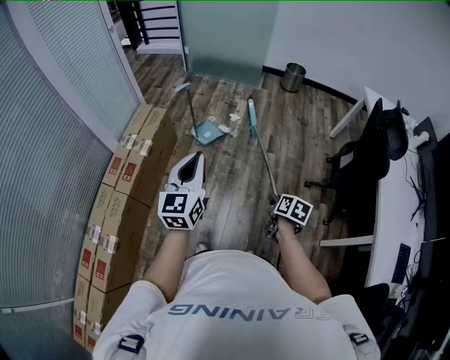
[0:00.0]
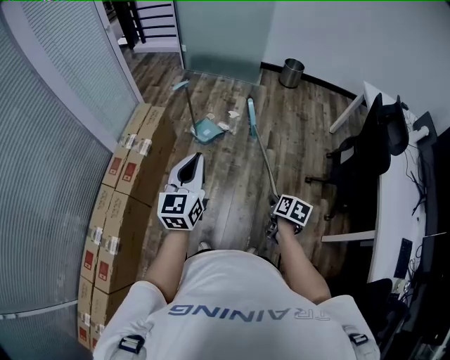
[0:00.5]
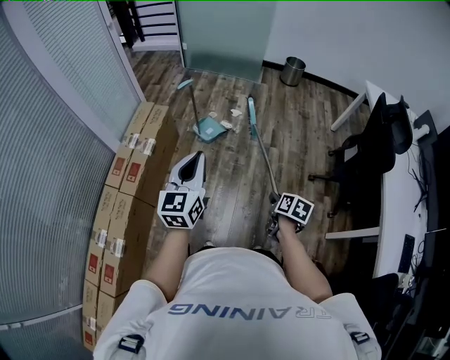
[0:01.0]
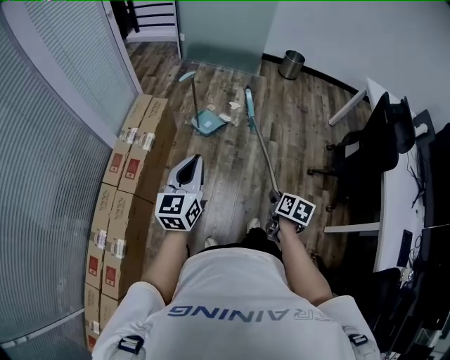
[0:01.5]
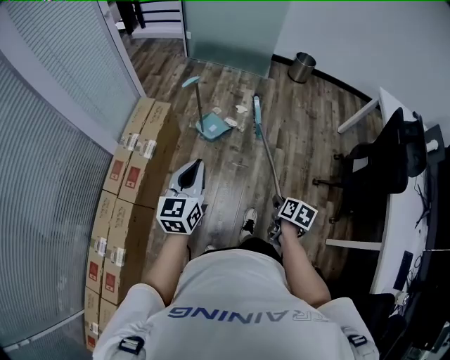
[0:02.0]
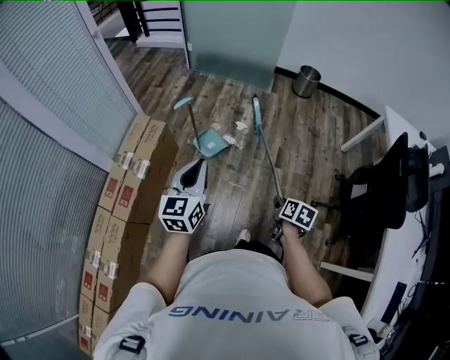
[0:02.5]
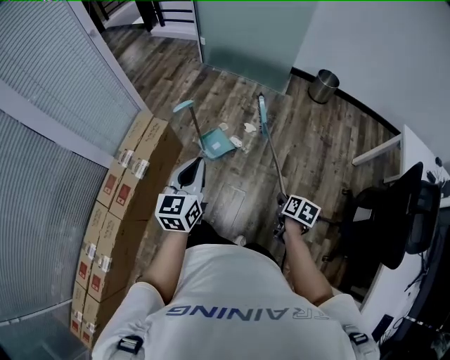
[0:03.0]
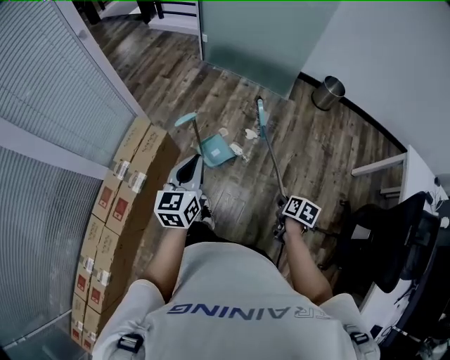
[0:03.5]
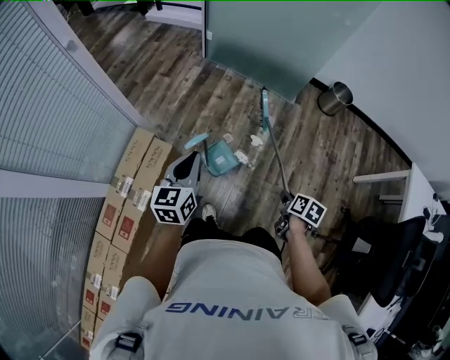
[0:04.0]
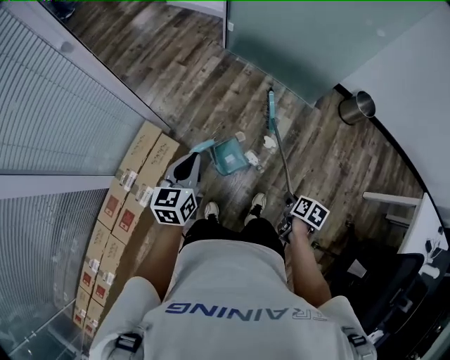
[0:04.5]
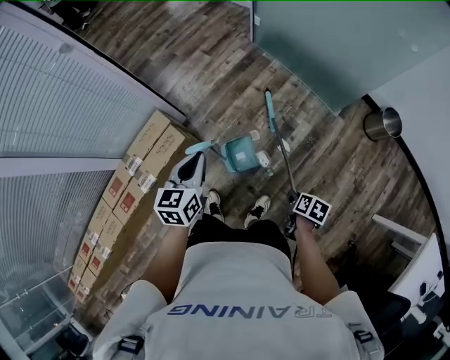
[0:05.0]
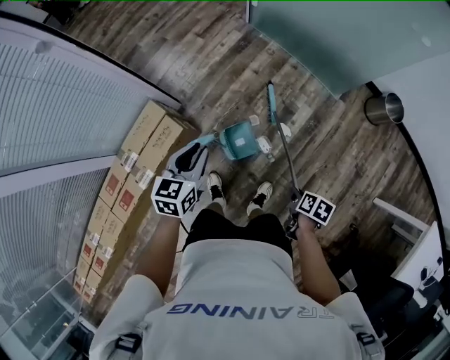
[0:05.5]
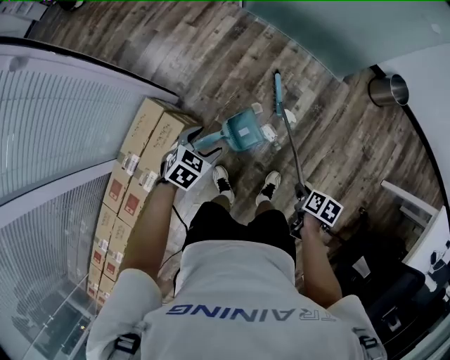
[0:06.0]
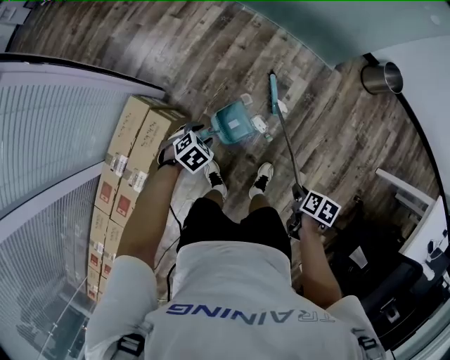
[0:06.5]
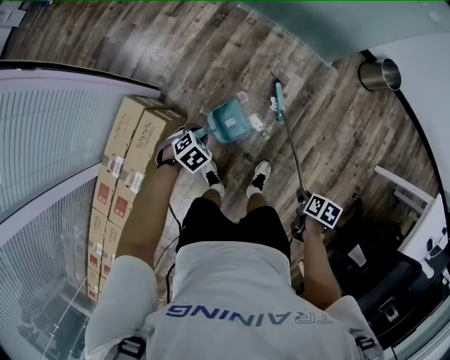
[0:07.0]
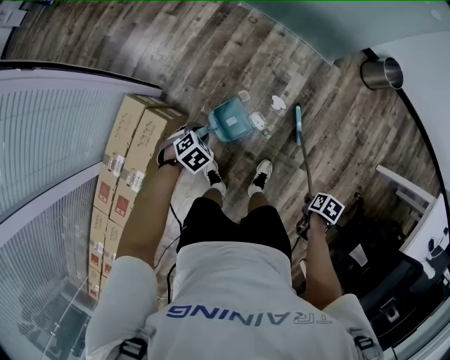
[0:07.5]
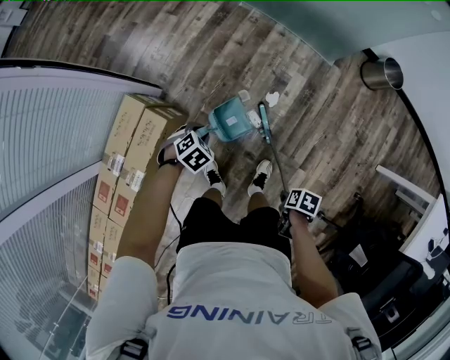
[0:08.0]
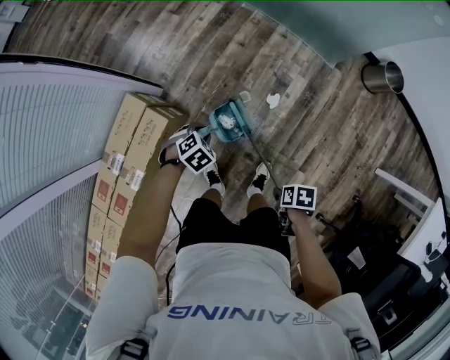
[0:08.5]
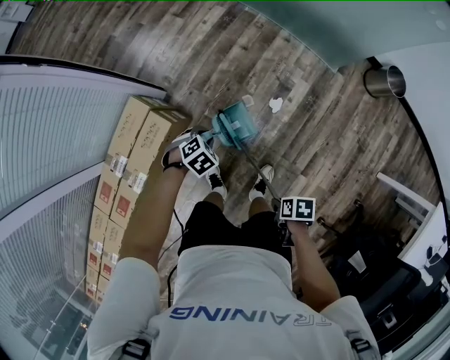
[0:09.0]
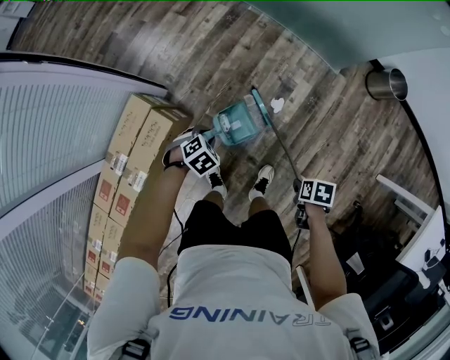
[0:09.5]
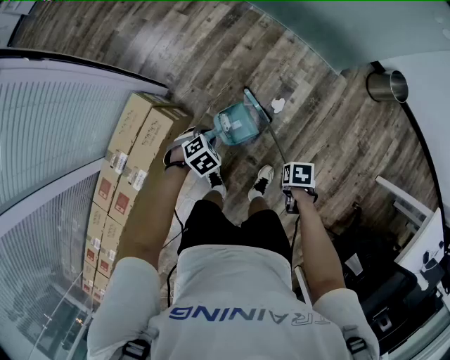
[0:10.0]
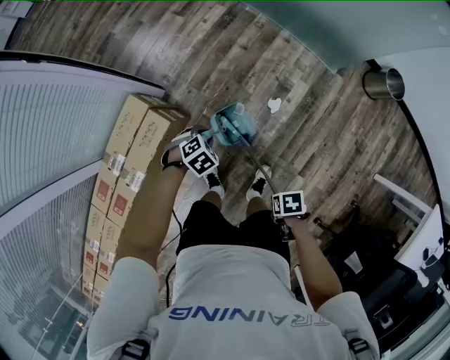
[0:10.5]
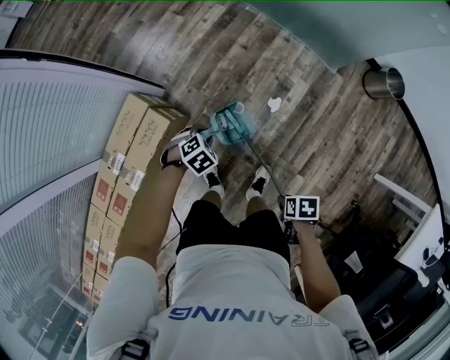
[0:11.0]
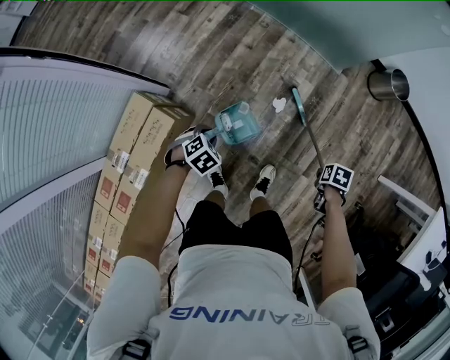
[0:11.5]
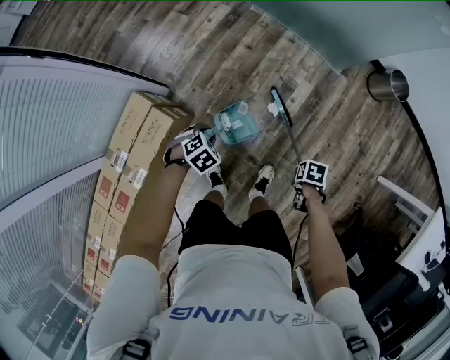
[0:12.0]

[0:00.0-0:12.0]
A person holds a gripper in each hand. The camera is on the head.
0:00.0 to 0:02.0: The left gripper ends up about 15 cm from where it was.
0:02.0 to 0:04.0: The left gripper changes place by about 50 cm.
0:04.0 to 0:06.0: The left gripper moves downward, some 20 cm, tilts its fingers some 40 degrees downward, and opens its fingers.
0:06.0 to 0:08.0: The left gripper moves downward, approximately 10 cm, rotates approximately 20 degrees, and closes its fingers.

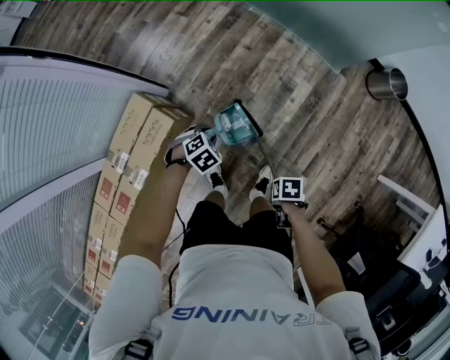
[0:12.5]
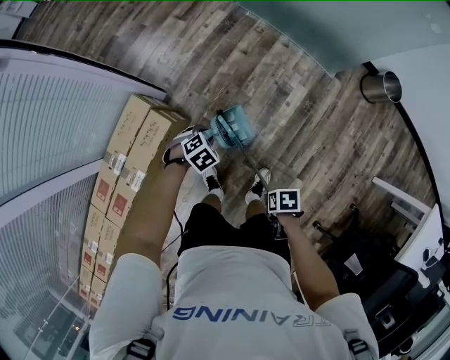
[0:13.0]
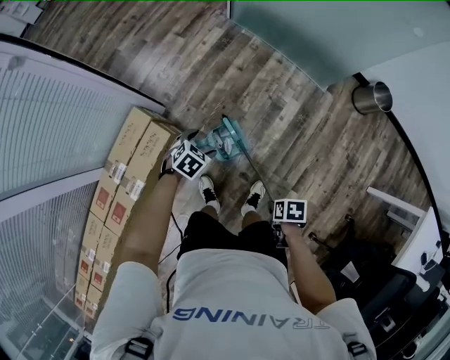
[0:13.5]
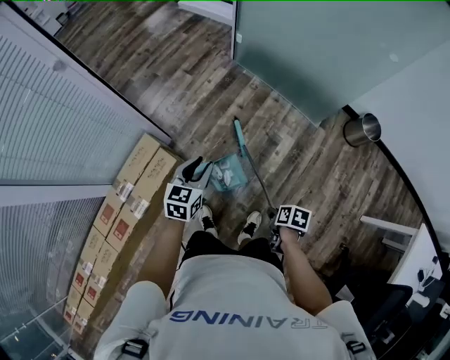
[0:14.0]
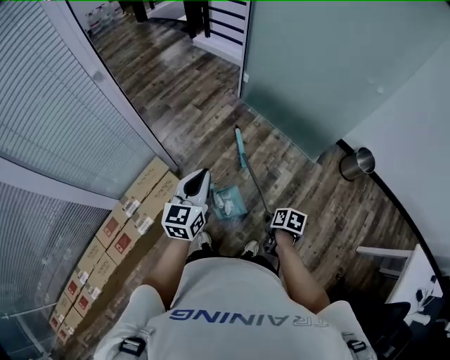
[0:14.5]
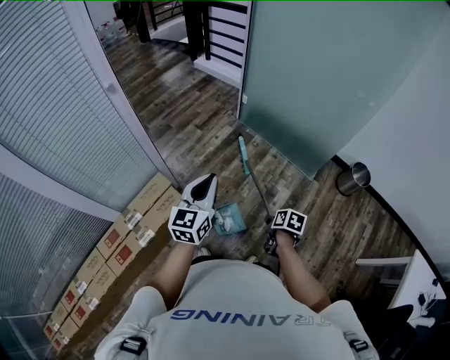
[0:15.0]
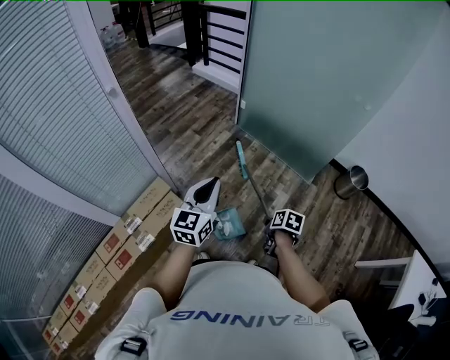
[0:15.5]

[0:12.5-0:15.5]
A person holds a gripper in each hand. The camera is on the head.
0:12.5 to 0:14.0: The left gripper shifts roughly 25 cm upward, points its fingers roughly 40 degrees further upward, and opens and closes again.
0:14.0 to 0:15.5: The left gripper heads upward, covering approximately 20 cm, turns by about 20 degrees, and closes its fingers.

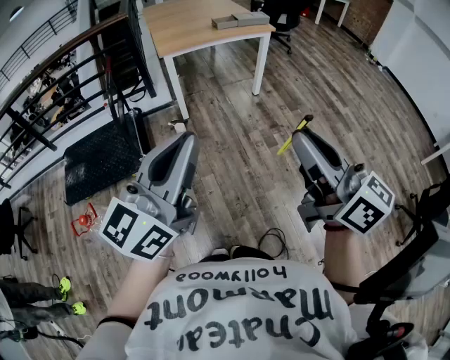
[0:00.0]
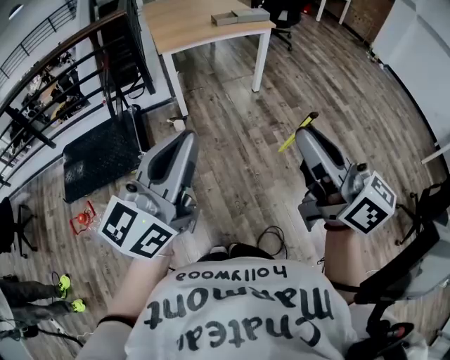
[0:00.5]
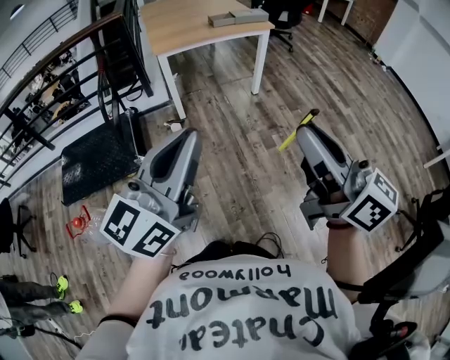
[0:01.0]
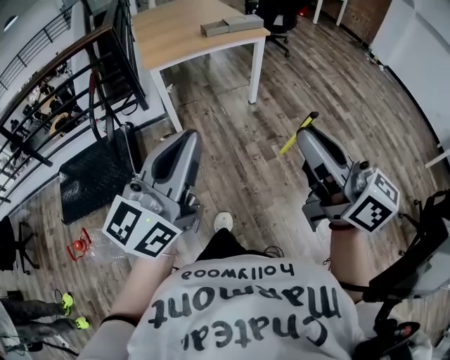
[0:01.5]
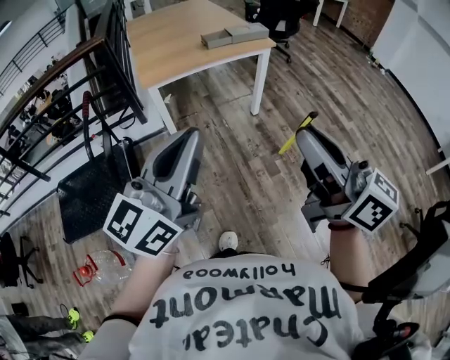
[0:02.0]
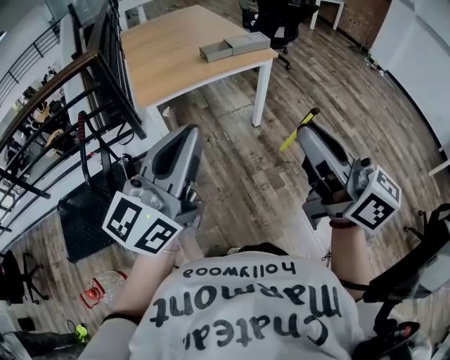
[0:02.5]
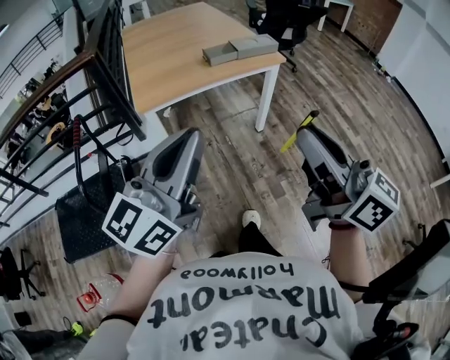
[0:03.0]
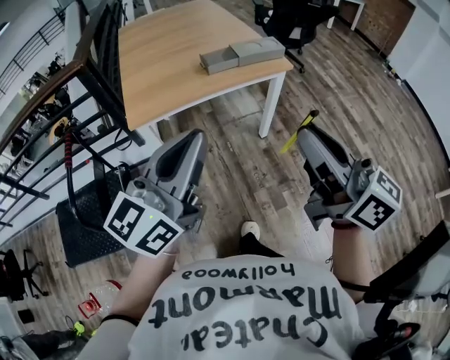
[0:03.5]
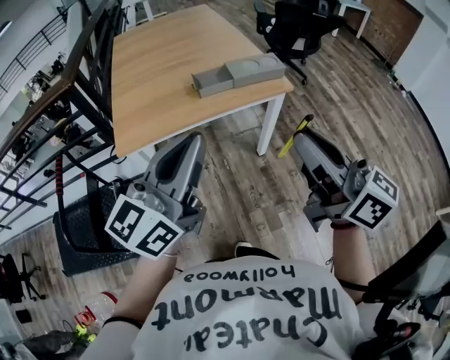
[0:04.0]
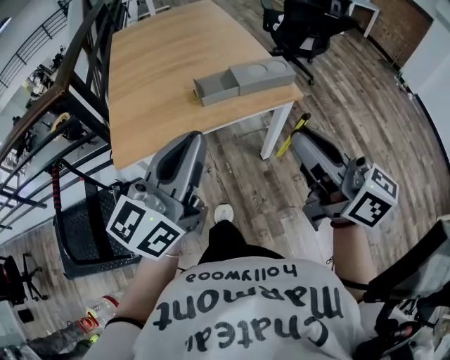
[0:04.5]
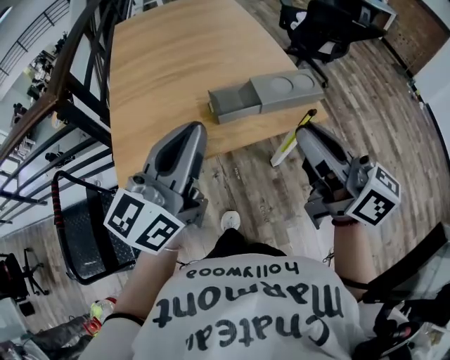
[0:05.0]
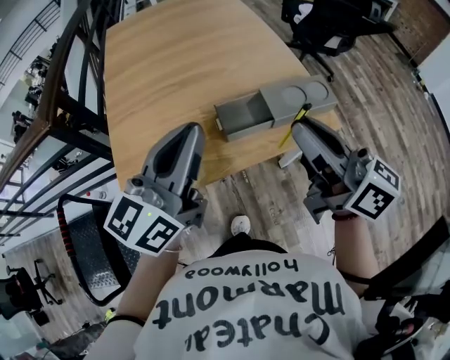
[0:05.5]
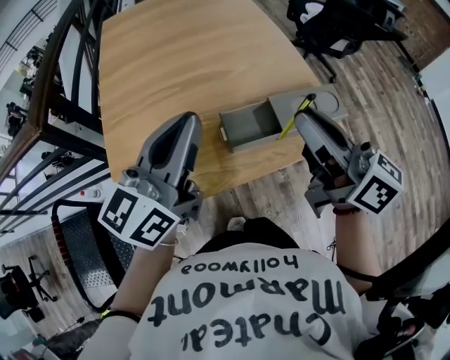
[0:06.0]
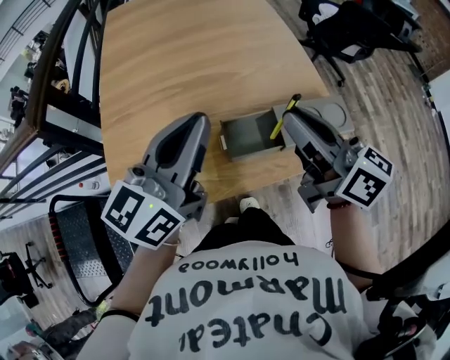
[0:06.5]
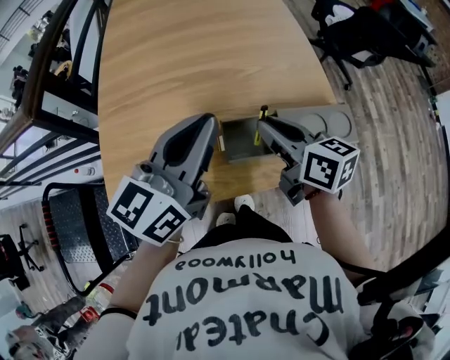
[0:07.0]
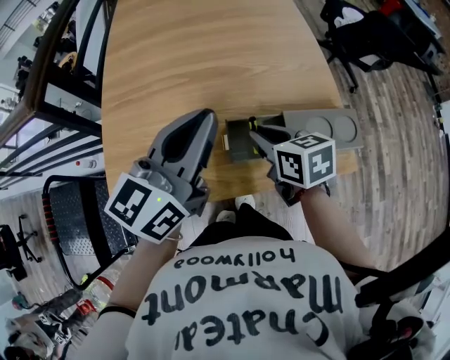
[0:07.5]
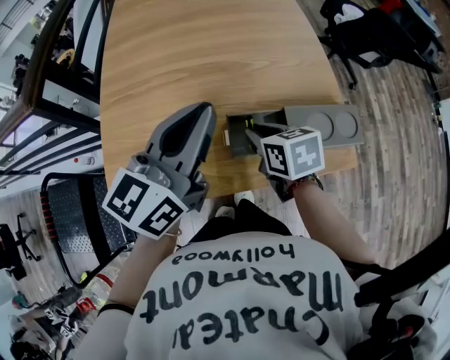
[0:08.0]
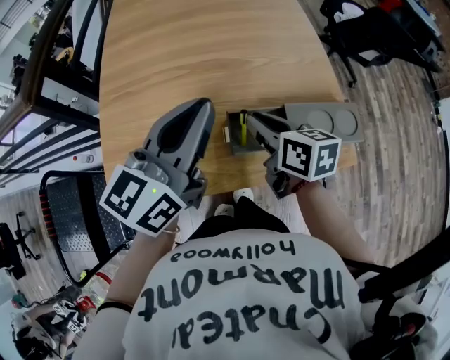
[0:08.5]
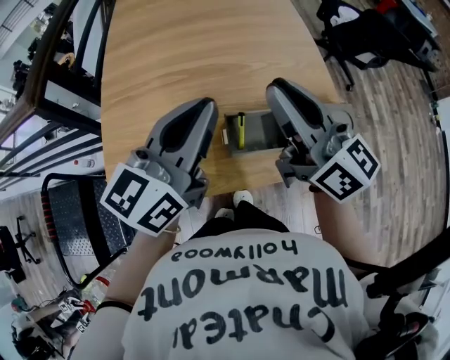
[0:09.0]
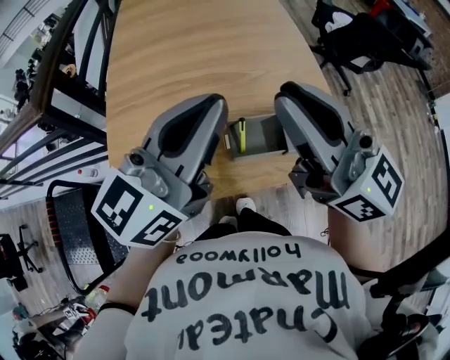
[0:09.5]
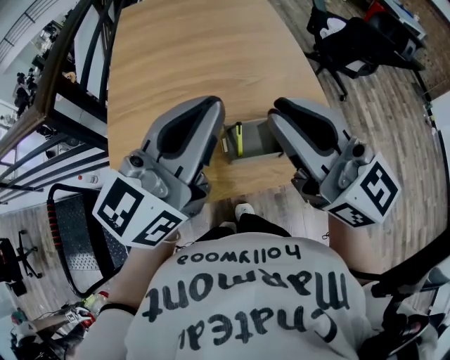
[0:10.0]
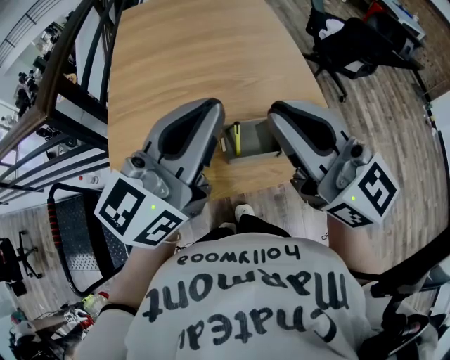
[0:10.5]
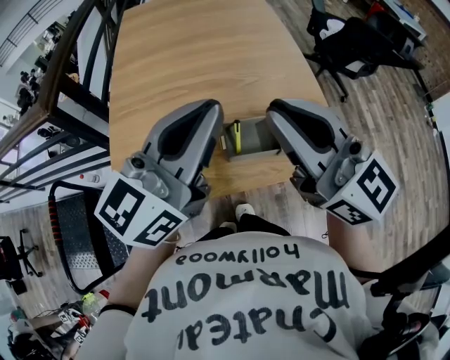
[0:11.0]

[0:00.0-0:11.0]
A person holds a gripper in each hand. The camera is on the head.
0:00.0 to 0:02.0: The two grippers go approximately 25 cm forward.
0:02.0 to 0:03.5: Both grippers travel together forward, about 30 cm.
0:03.5 to 0:05.5: The two grippers travel together, forward, roughly 40 cm.
0:05.5 to 0:07.5: The left gripper is displaced forward by roughly 10 cm. The right gripper travels downward and forward by some 25 cm, and angles its fingers downward, by roughly 50 degrees.
0:07.5 to 0:09.0: The right gripper moves upward, about 20 cm, and angles its fingers upward, by approximately 50 degrees.
0:09.0 to 0:11.0: The left gripper travels upward by about 10 cm. The right gripper heads backward and upward, covering roughly 10 cm, and swivels about 20 degrees.

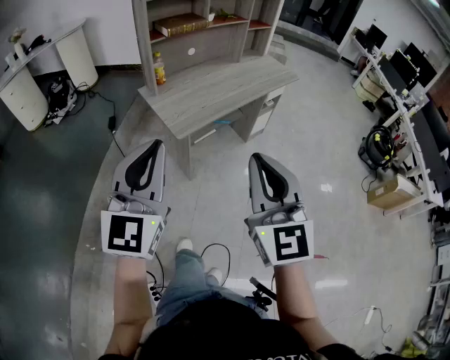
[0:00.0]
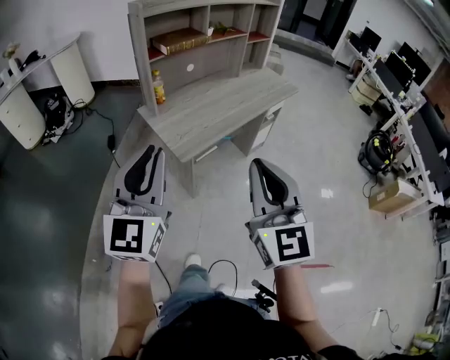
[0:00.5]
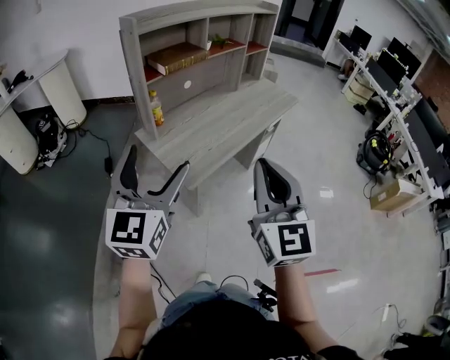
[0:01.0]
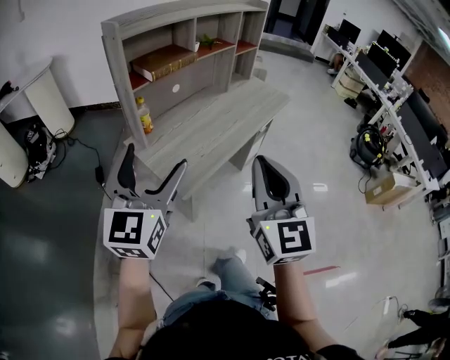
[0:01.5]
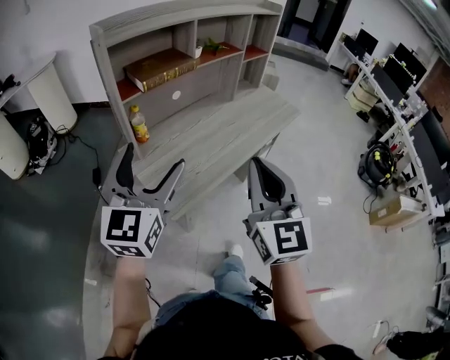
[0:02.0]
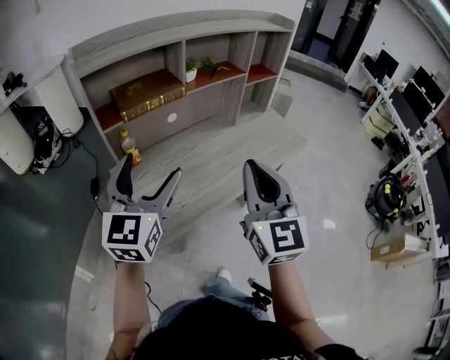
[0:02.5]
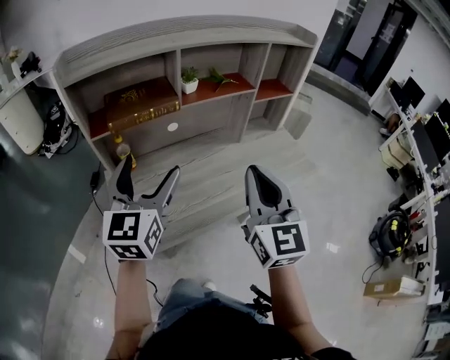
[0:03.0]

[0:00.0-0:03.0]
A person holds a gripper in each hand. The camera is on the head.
0:00.0 to 0:01.5: The grippers both shift forward by approximately 25 cm. The left gripper opens its fingers.
0:01.5 to 0:03.0: Both grippers travel together forward and to the right, some 35 cm. The right gripper rotates approximately 20 degrees. The left gripper changes its angle by roughly 30 degrees.
